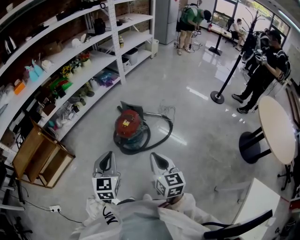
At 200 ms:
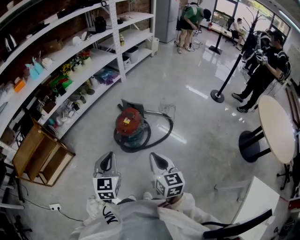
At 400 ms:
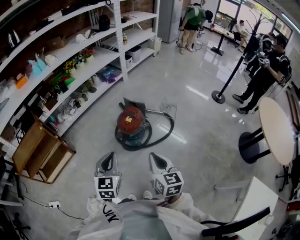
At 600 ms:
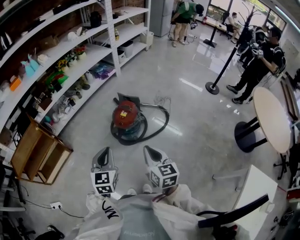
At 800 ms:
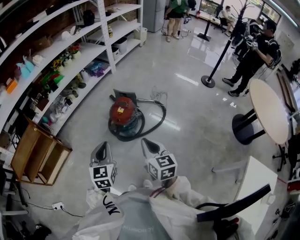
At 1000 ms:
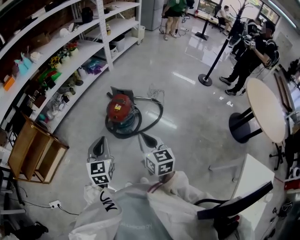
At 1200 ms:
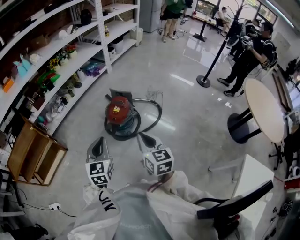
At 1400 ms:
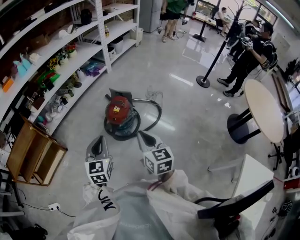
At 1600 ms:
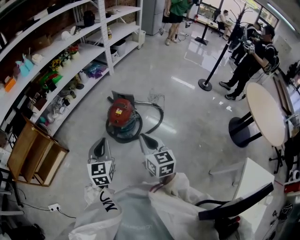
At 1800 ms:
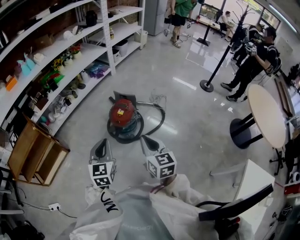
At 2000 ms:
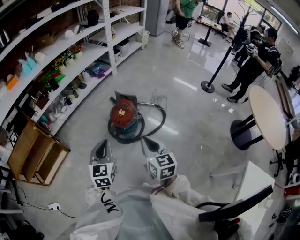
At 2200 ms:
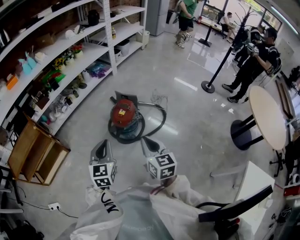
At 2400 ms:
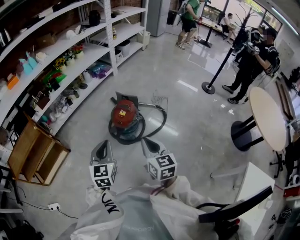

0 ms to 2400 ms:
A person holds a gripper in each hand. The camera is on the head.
0 ms to 2400 ms: The grippers make only small movements.

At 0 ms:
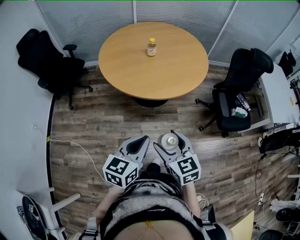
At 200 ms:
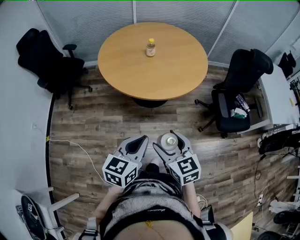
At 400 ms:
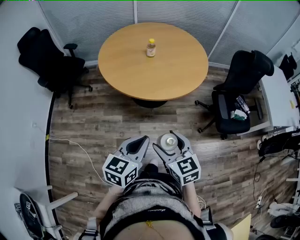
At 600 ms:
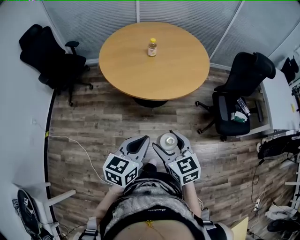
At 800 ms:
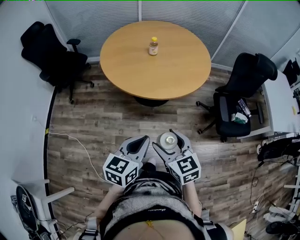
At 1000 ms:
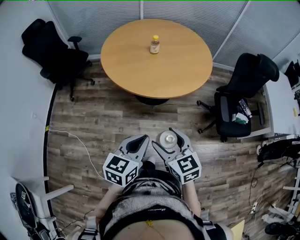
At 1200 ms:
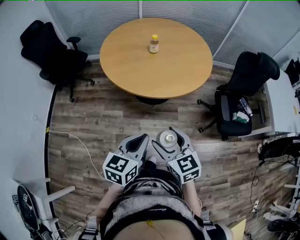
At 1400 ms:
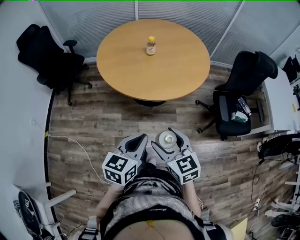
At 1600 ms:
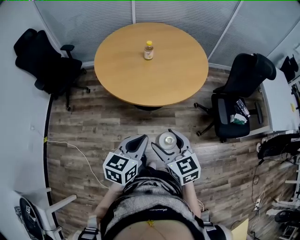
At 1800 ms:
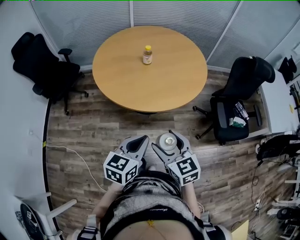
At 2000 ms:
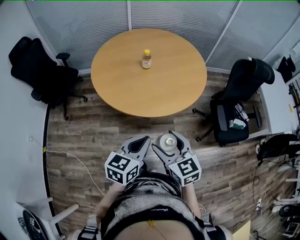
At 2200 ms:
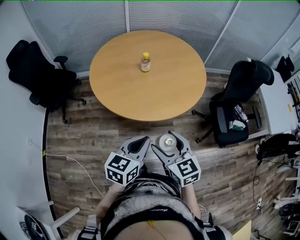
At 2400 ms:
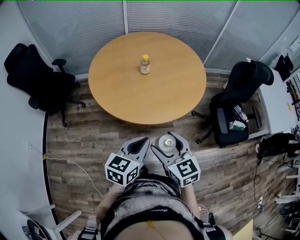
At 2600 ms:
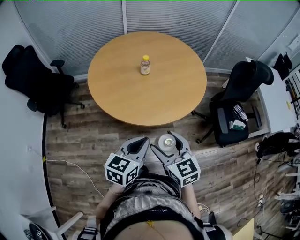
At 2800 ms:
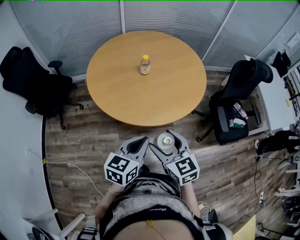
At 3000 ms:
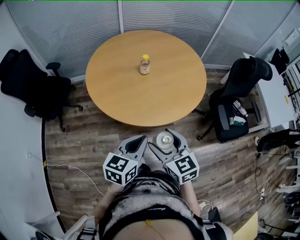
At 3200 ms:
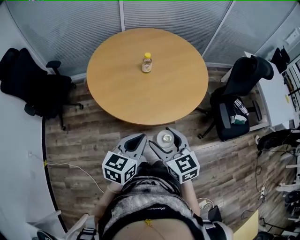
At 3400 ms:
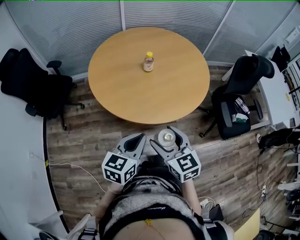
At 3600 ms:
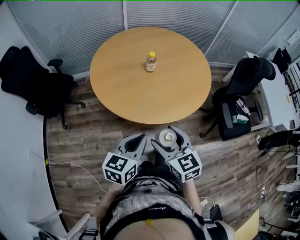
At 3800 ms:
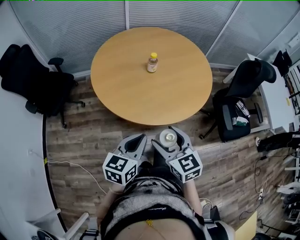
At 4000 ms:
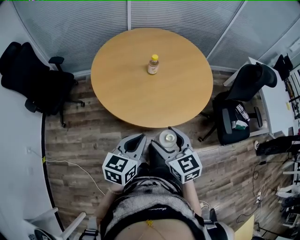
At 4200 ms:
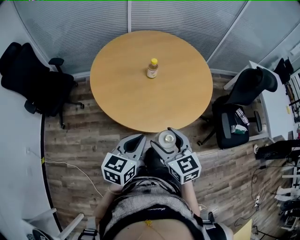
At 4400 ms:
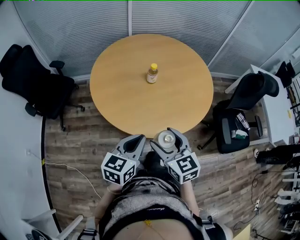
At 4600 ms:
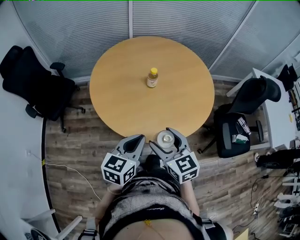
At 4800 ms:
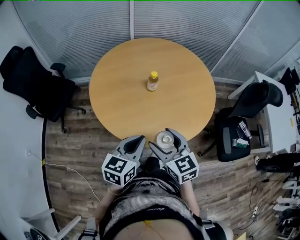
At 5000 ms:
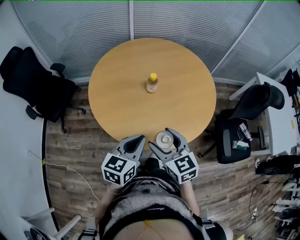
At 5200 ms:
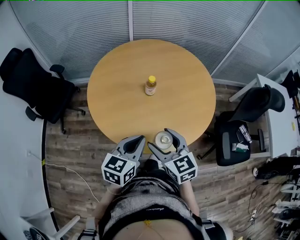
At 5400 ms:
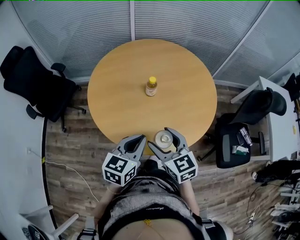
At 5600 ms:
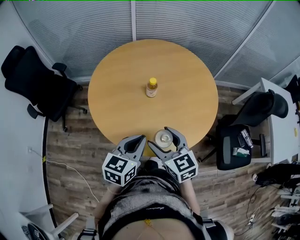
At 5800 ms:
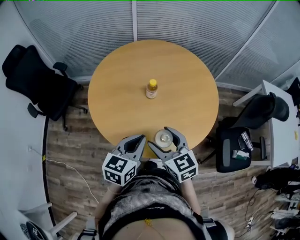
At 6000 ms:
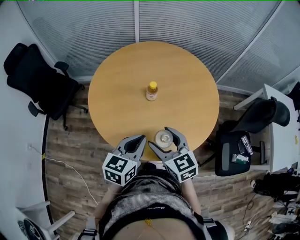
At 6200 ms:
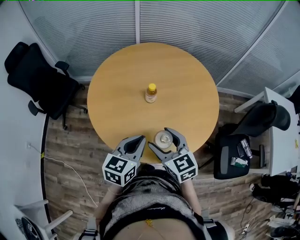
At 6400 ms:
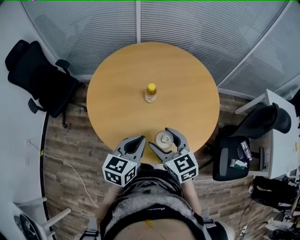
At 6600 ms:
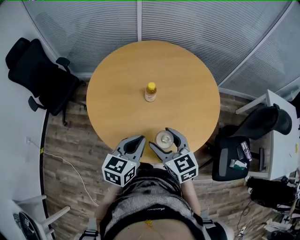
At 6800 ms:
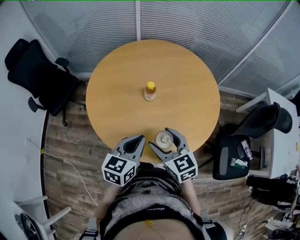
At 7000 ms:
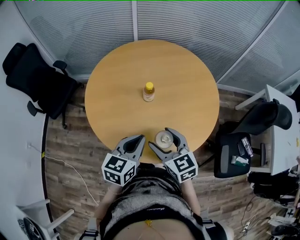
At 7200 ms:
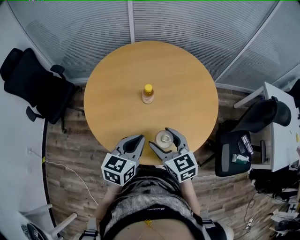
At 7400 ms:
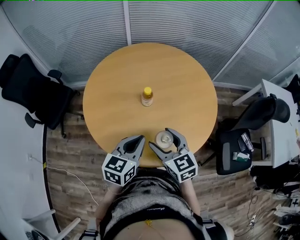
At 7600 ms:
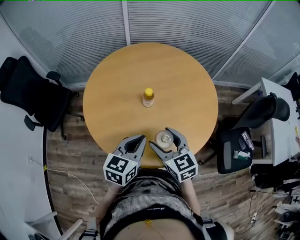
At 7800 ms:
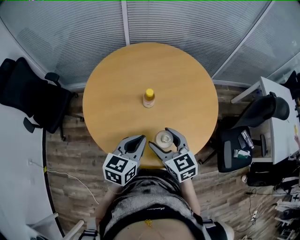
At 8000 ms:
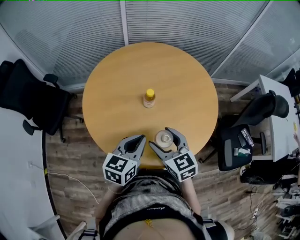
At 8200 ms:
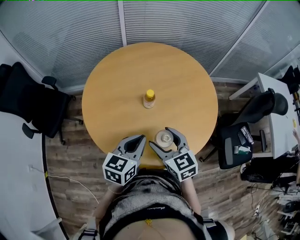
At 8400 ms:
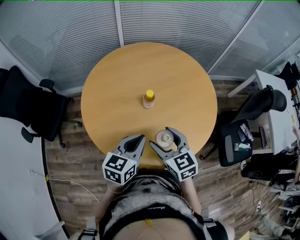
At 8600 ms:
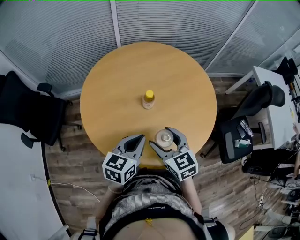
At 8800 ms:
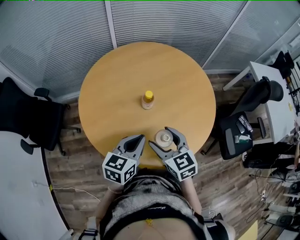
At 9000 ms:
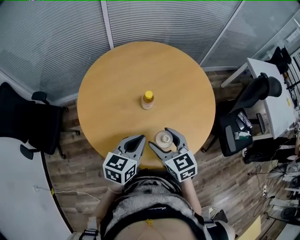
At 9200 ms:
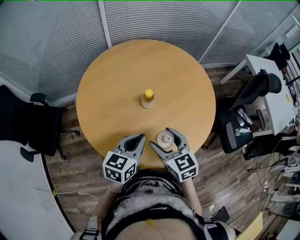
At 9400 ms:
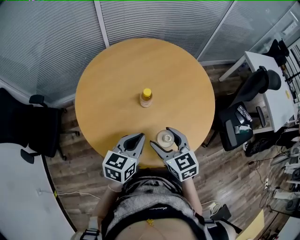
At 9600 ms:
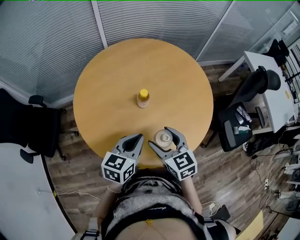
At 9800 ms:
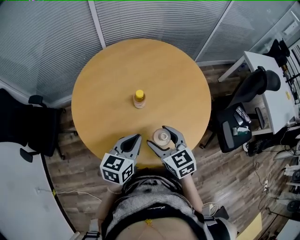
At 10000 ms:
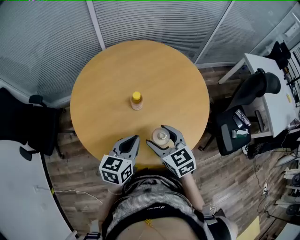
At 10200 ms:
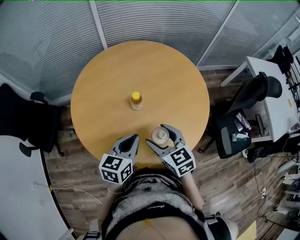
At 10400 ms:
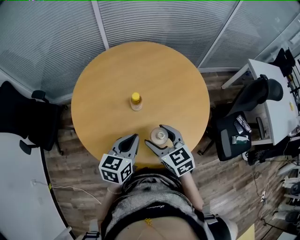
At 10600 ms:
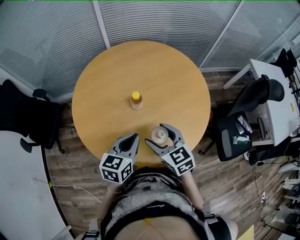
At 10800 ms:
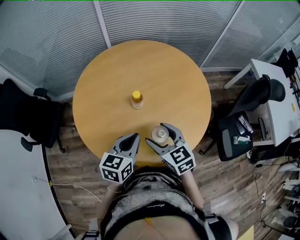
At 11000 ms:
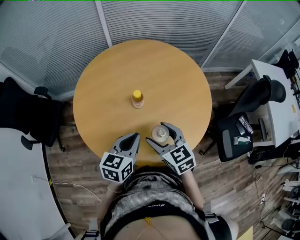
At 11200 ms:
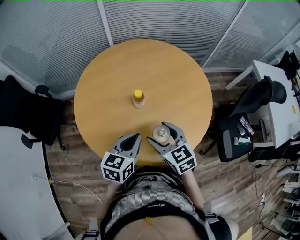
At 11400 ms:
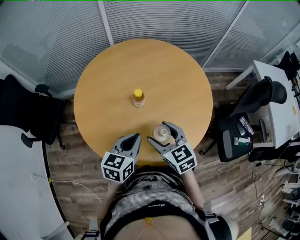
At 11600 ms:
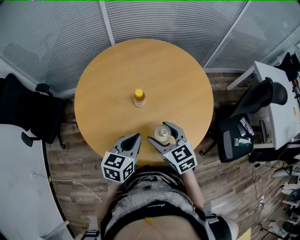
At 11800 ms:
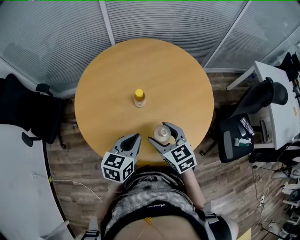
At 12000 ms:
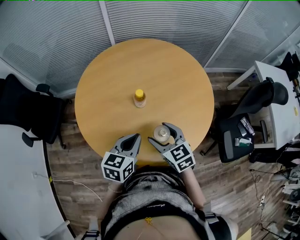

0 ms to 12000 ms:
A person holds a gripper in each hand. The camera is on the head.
0 ms to 1600 ms: Both grippers travel together forward, about 5 cm.
1600 ms to 3000 ms: The two grippers go about 15 cm forward and to the left.
3000 ms to 4400 ms: The grippers both shift forward by approximately 10 cm.
4400 ms to 6000 ms: The left gripper travels forward and to the right by roughly 15 cm. Meanwhile the right gripper shifts some 15 cm forward.
6000 ms to 7600 ms: The left gripper shifts roughly 5 cm forward, while the right gripper ends up roughly 5 cm from where it was.
7600 ms to 9000 ms: Both grippers travel together to the left, roughly 5 cm.
9000 ms to 10400 ms: Both grippers travel together to the right, approximately 5 cm.
10400 ms to 12000 ms: There are only small adjustments of the grippers.

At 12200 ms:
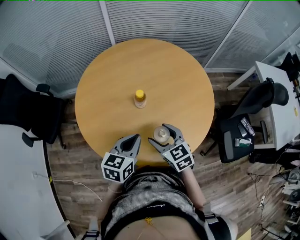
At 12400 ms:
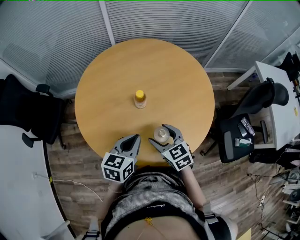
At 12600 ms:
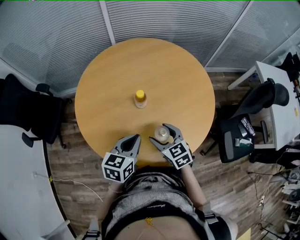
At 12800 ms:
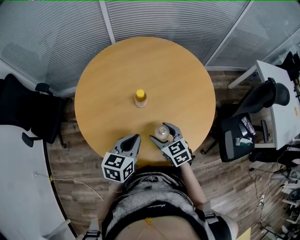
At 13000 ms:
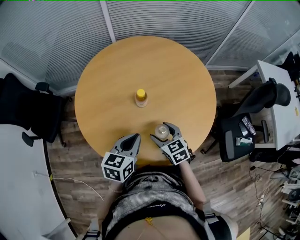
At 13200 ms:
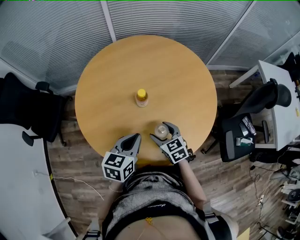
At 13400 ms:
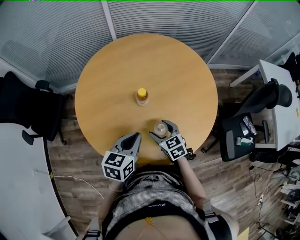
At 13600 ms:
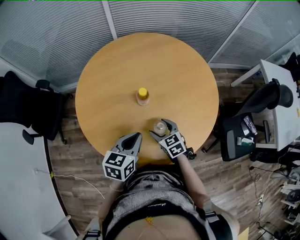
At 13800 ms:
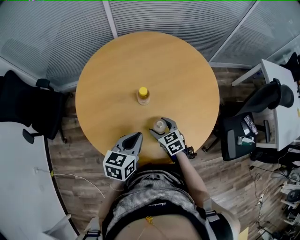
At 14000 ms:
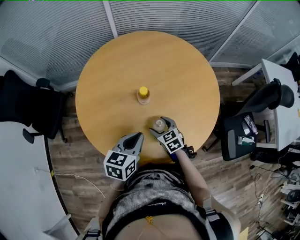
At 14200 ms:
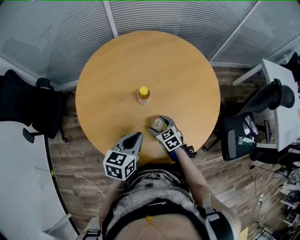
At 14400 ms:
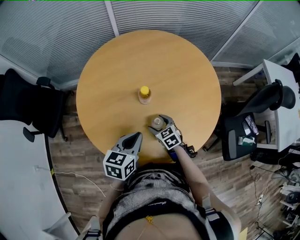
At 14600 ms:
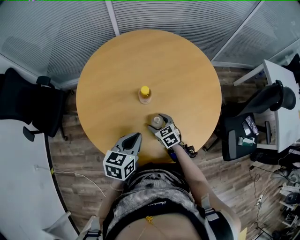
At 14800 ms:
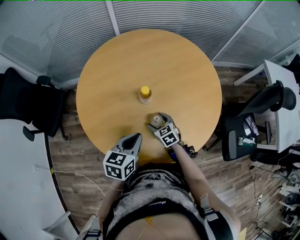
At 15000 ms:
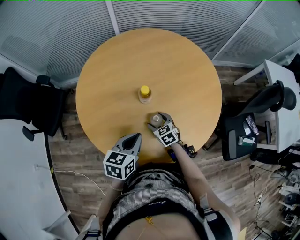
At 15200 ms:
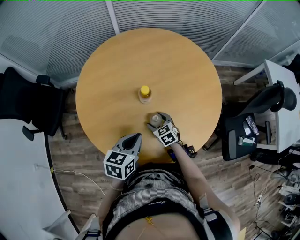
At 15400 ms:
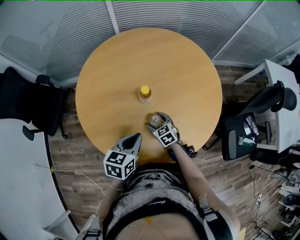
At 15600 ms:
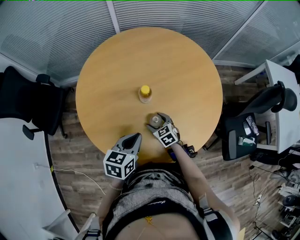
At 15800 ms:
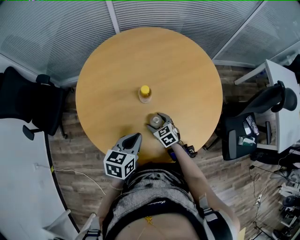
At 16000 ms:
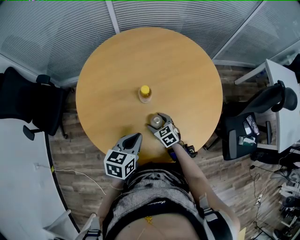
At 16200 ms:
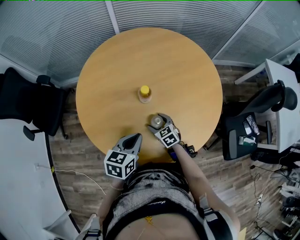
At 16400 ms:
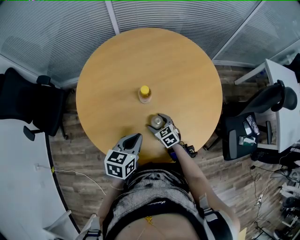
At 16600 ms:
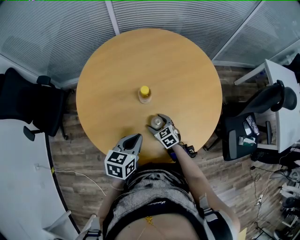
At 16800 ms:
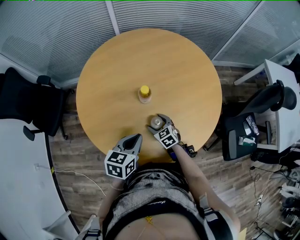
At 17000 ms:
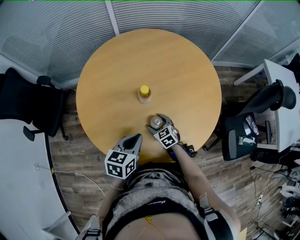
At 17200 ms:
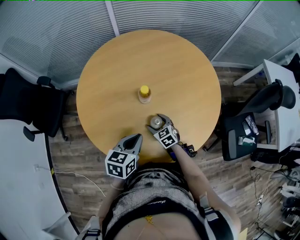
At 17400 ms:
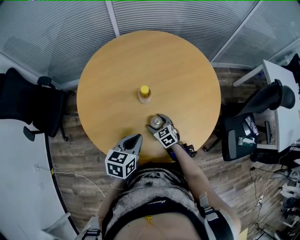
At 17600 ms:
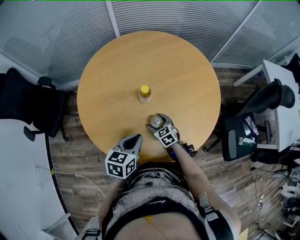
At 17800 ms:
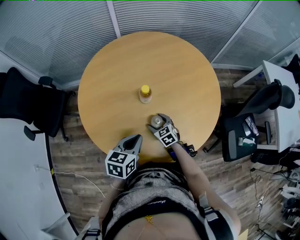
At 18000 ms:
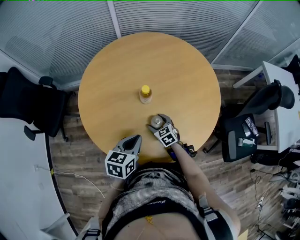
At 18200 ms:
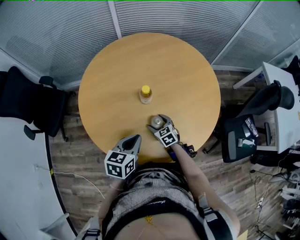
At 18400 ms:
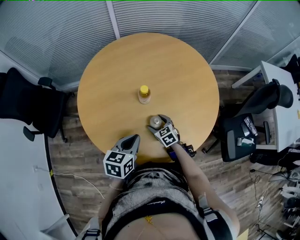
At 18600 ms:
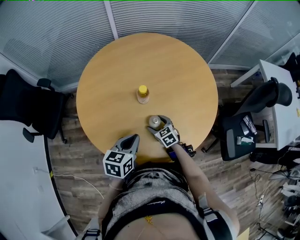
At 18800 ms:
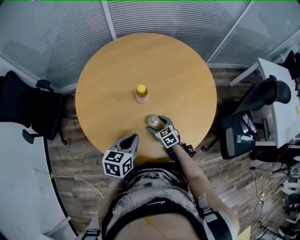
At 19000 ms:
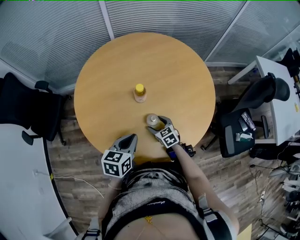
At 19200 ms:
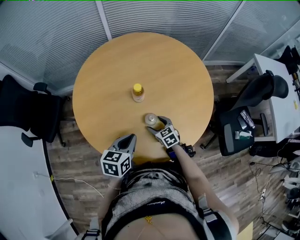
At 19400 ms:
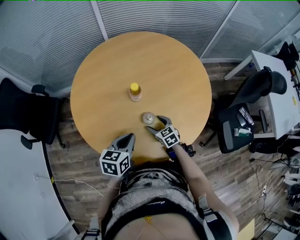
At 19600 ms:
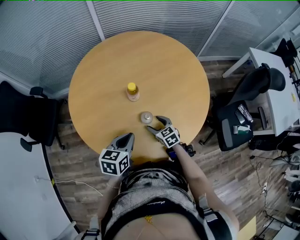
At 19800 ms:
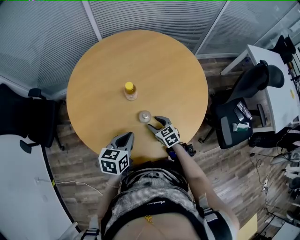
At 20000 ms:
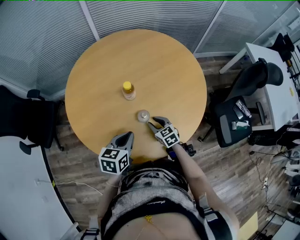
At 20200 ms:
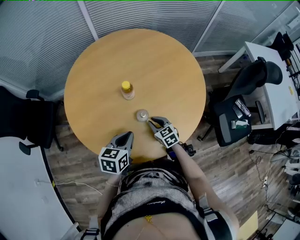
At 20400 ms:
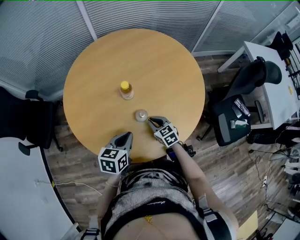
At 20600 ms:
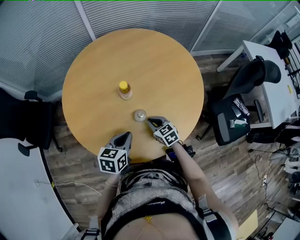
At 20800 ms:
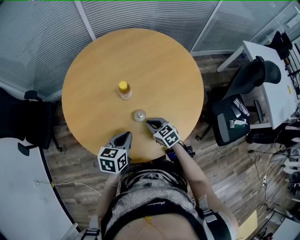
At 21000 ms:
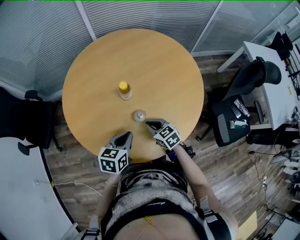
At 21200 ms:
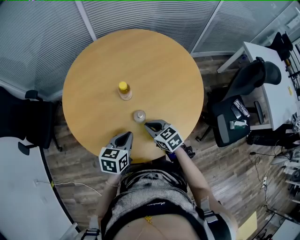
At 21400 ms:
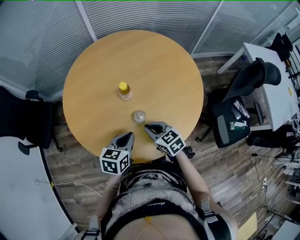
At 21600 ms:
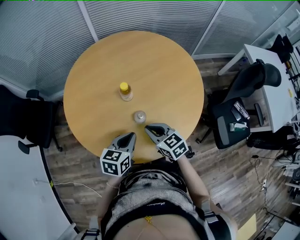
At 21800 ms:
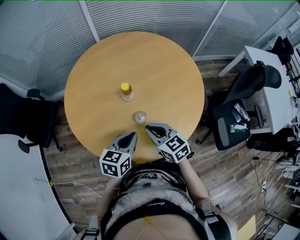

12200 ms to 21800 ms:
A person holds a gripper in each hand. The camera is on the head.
12200 ms to 13800 ms: The right gripper moves downward, roughly 15 cm.
13800 ms to 15400 ms: The right gripper shifts about 5 cm downward.
15400 ms to 17000 ms: The two grippers keep their place.
17000 ms to 18600 ms: The grippers stay close to where they were, moving slightly.
18600 ms to 20200 ms: The right gripper changes place by roughly 5 cm, and closes up.
20200 ms to 21800 ms: The right gripper heads upward, covering some 15 cm.
